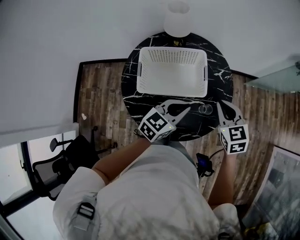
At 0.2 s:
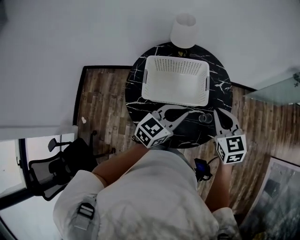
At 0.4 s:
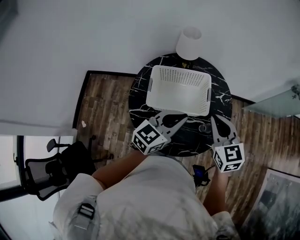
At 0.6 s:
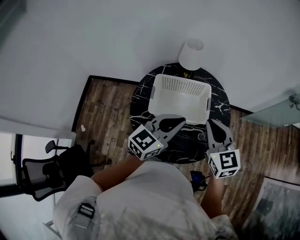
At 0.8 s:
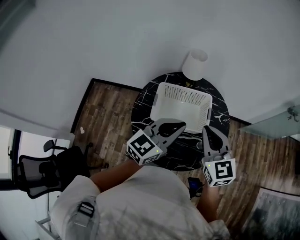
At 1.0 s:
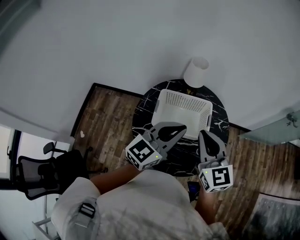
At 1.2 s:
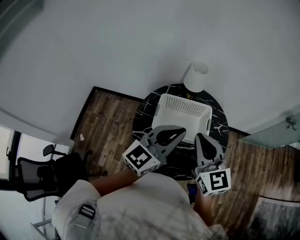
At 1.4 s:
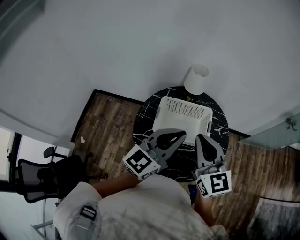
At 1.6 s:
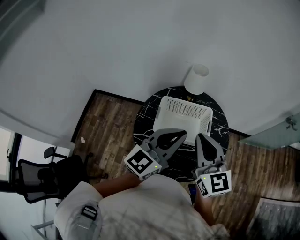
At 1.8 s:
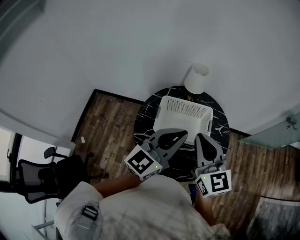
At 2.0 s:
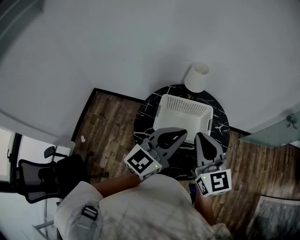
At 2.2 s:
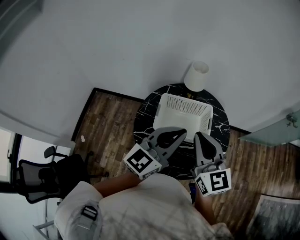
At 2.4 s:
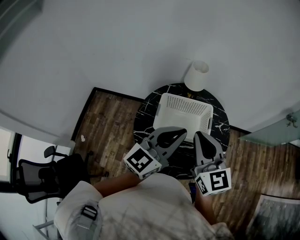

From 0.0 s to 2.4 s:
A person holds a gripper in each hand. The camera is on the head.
From 0.0 s to 1.2 s: The grippers both shift upward and to the left by approximately 25 cm. The right gripper changes its angle by about 30 degrees. Meanwhile the left gripper turns by some 30 degrees.
From 1.2 s to 2.4 s: The grippers make only small movements.

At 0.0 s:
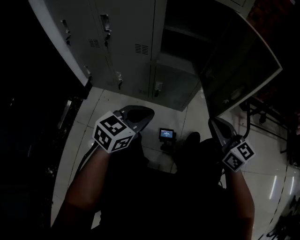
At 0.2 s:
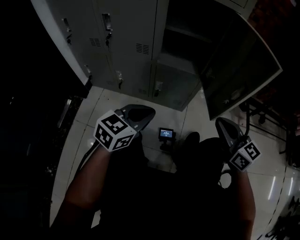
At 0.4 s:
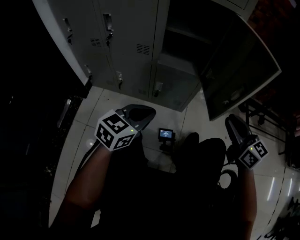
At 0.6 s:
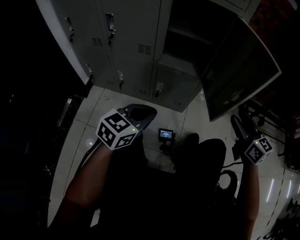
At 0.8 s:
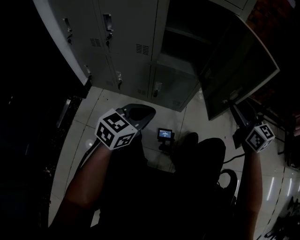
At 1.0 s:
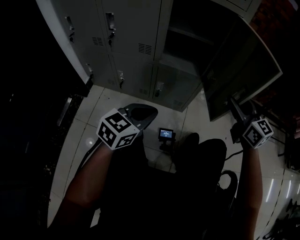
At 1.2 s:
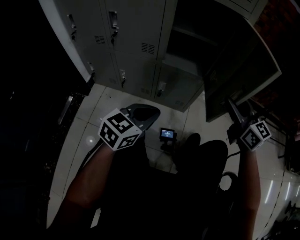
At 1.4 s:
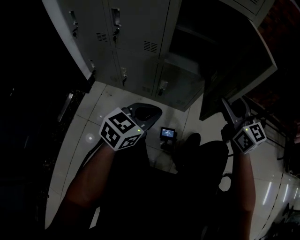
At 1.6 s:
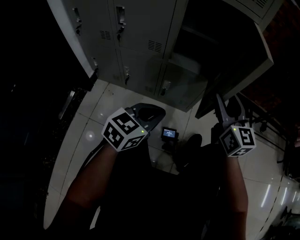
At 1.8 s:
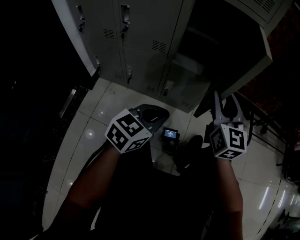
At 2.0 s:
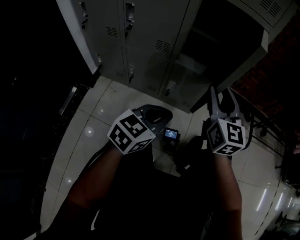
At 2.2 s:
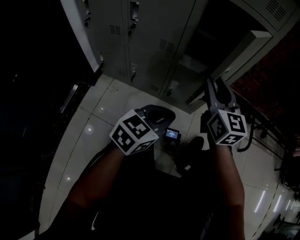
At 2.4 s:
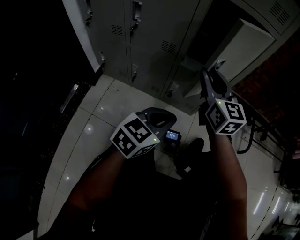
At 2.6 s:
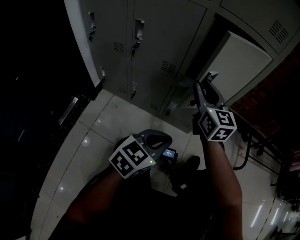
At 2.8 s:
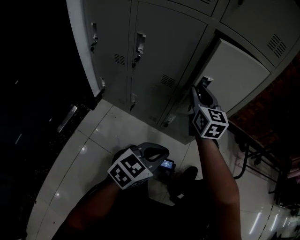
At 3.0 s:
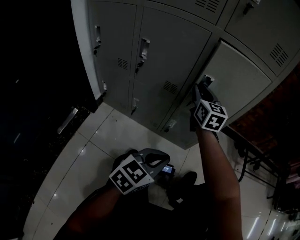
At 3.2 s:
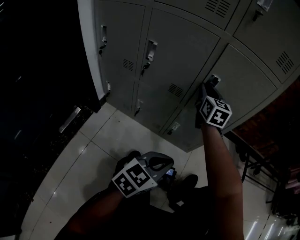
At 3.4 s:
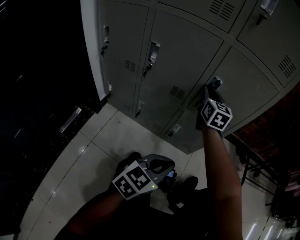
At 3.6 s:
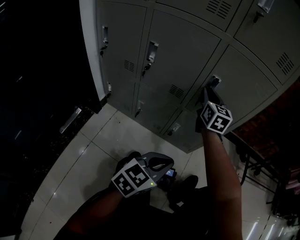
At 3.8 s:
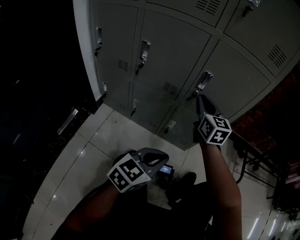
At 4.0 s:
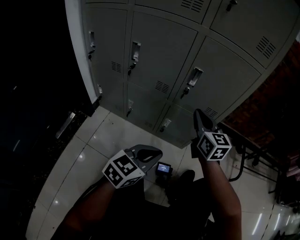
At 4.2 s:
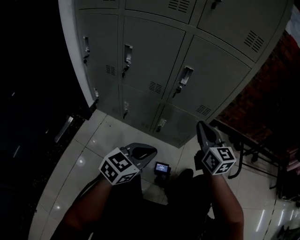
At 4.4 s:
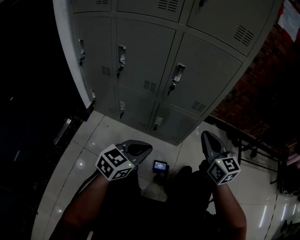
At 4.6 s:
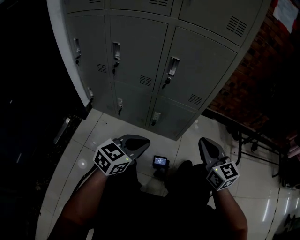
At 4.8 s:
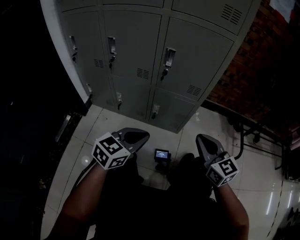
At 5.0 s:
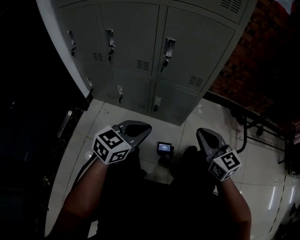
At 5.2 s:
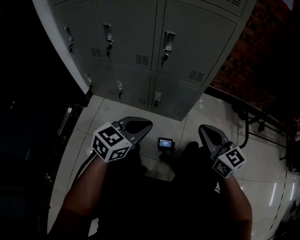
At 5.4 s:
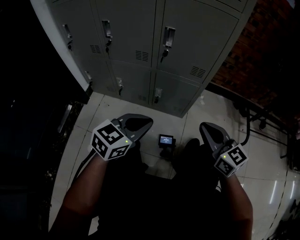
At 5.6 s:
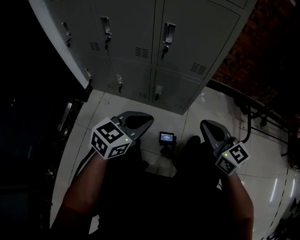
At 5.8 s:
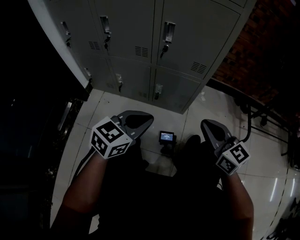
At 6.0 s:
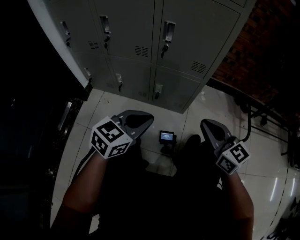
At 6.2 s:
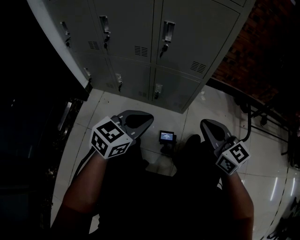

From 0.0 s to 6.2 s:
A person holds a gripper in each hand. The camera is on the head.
From 0.0 s to 1.6 s: The right gripper goes roughly 10 cm forward and upward, moves approximately 10 cm to the right and comes back, swivels some 20 degrees, and opens.
From 1.6 s to 3.2 s: The right gripper shifts roughly 30 cm to the left and forward, and closes.
From 3.2 s to 4.6 s: The right gripper goes some 35 cm backward and to the right.
From 4.6 s to 6.2 s: The grippers move only a little.

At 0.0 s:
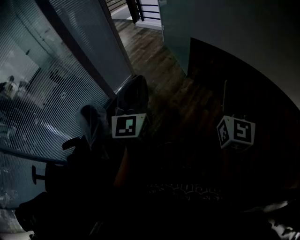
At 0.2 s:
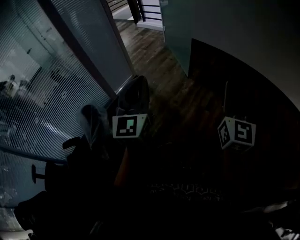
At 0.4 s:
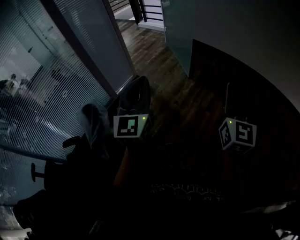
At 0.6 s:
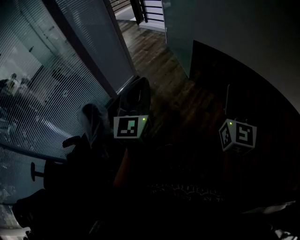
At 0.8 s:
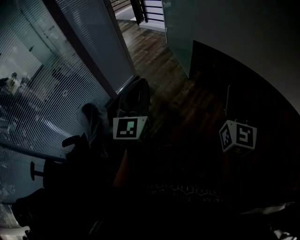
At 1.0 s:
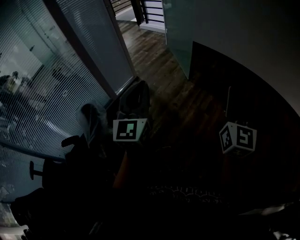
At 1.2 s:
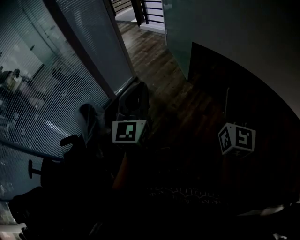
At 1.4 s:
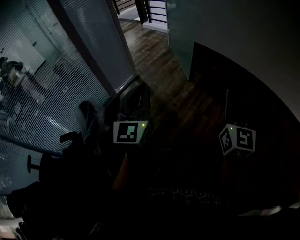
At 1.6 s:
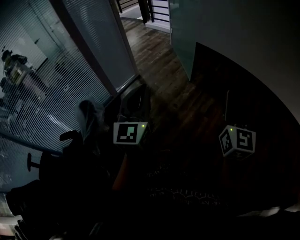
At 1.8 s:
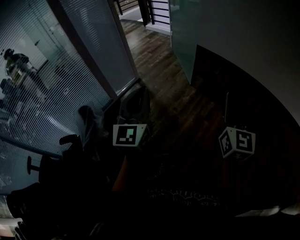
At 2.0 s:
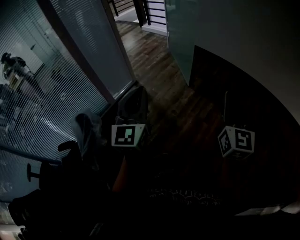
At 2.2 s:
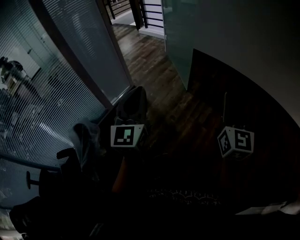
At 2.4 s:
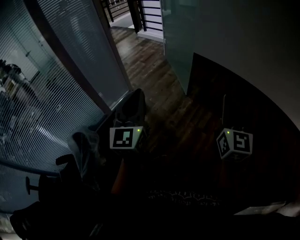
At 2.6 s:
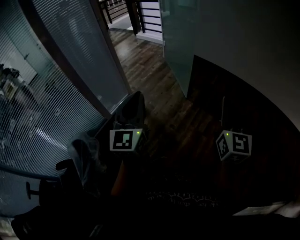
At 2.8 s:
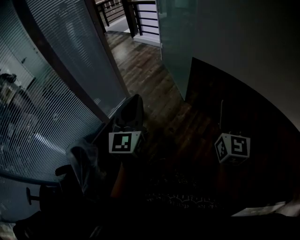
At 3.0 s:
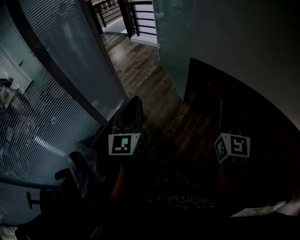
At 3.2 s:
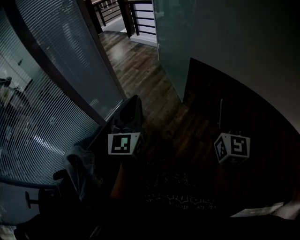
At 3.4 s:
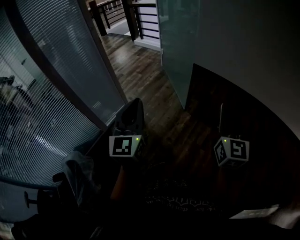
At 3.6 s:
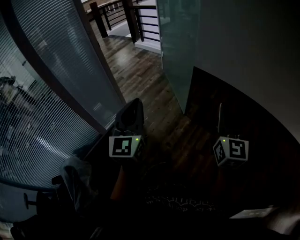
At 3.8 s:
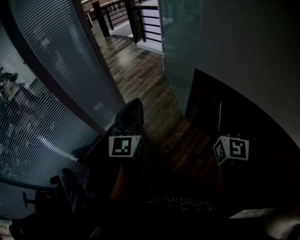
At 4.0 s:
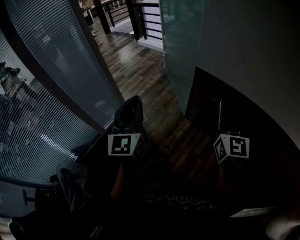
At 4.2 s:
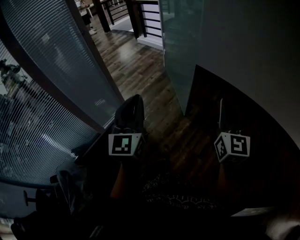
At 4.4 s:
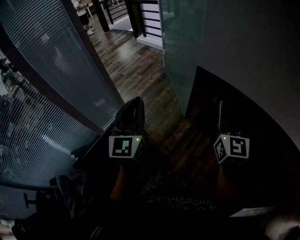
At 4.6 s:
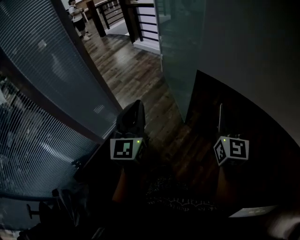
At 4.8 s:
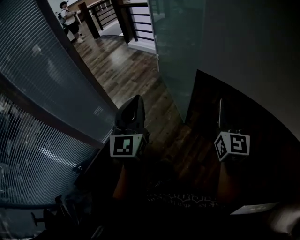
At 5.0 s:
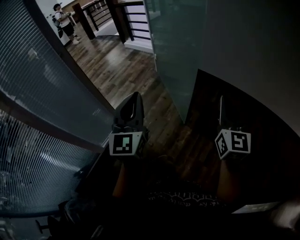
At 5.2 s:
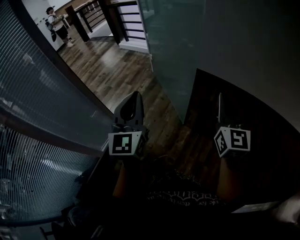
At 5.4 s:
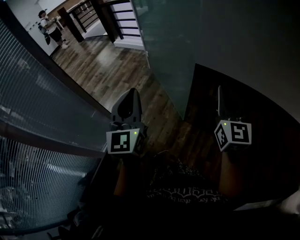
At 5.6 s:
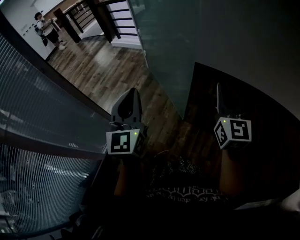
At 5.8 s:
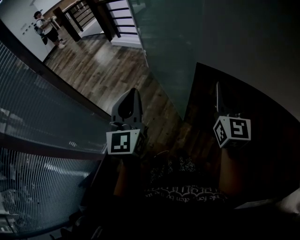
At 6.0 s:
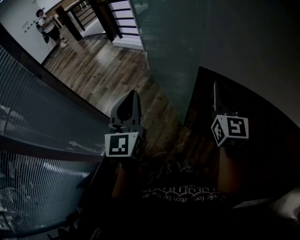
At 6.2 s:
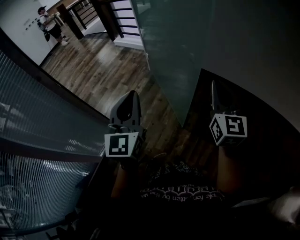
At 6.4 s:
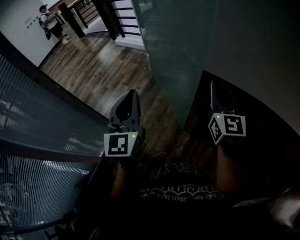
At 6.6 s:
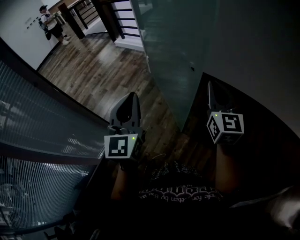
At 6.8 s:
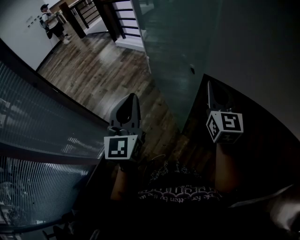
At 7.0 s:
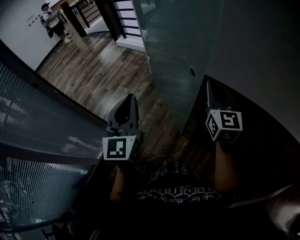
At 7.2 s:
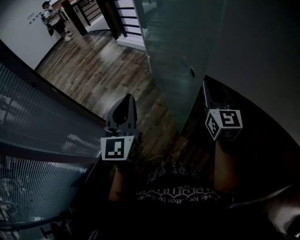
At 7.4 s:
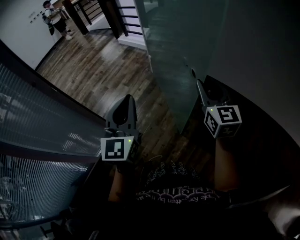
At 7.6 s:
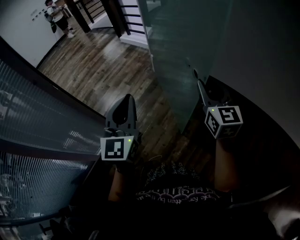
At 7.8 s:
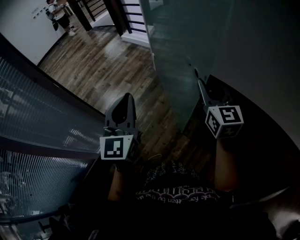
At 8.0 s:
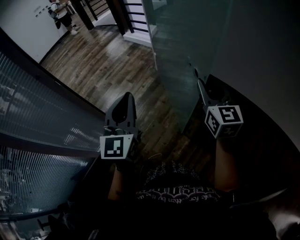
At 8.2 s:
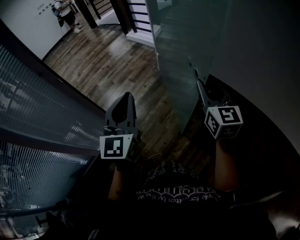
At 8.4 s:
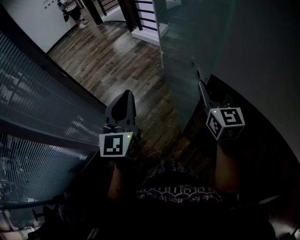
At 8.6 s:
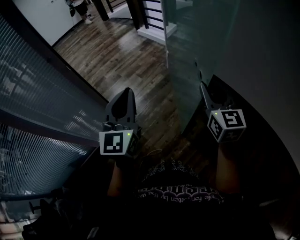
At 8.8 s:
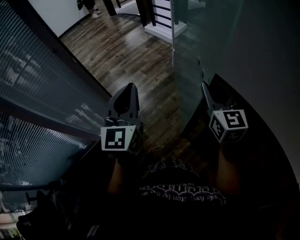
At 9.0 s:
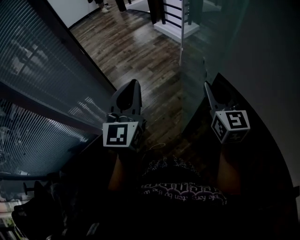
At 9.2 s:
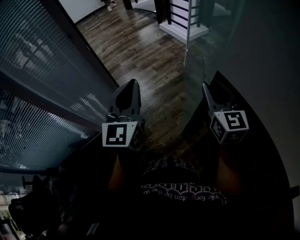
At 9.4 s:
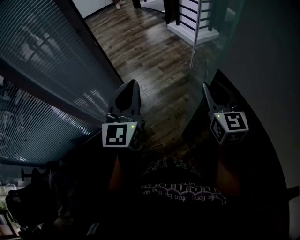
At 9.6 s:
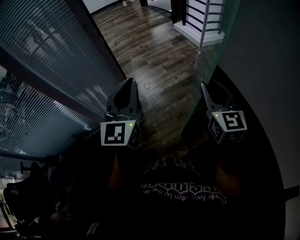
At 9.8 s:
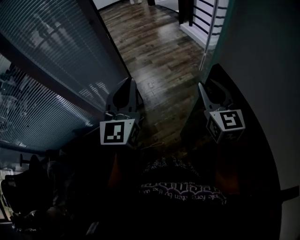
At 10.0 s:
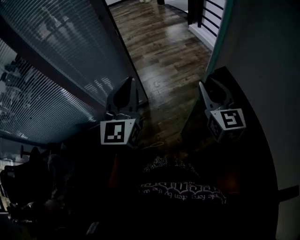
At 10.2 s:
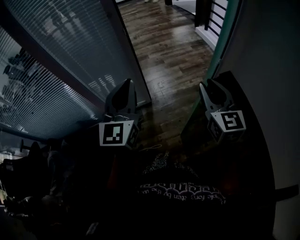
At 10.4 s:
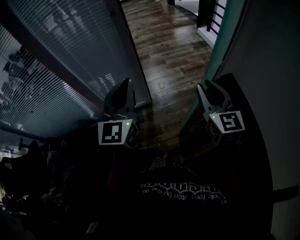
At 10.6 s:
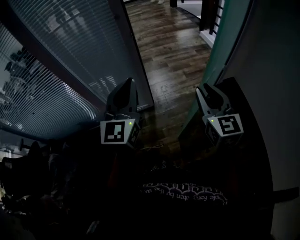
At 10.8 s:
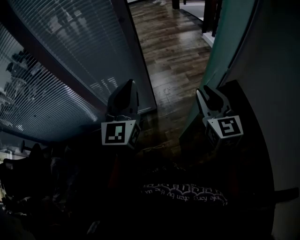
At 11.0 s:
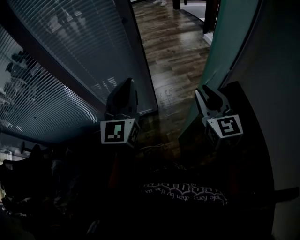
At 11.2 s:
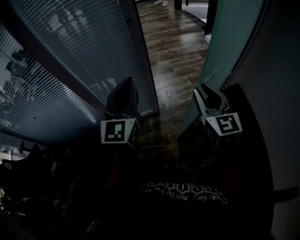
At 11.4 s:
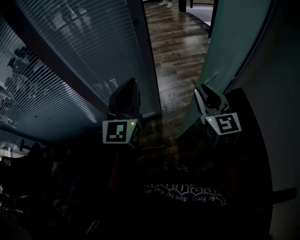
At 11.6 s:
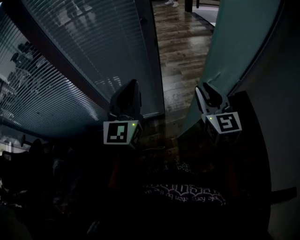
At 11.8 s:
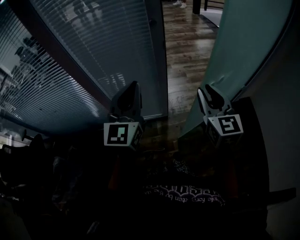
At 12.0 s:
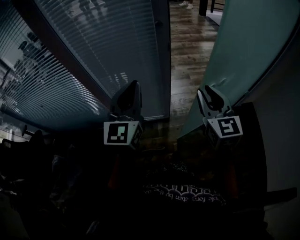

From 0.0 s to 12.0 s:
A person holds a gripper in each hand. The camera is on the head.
From 0.0 s to 1.6 s: The grippers make only small movements.
From 1.6 s to 3.0 s: Both grippers move forward, about 25 cm.
From 3.0 s to 4.4 s: Both grippers move forward, roughly 25 cm.
From 4.4 s to 6.0 s: Both grippers travel together forward, approximately 30 cm.
From 6.0 s to 7.6 s: The right gripper is displaced forward by about 15 cm, and opens up, while the left gripper goes roughly 10 cm forward.
From 7.6 s to 9.0 s: The two grippers go approximately 5 cm to the left.
From 9.0 s to 10.4 s: The right gripper goes about 20 cm to the left and forward, and turns by some 20 degrees; the left gripper travels to the left by some 15 cm, and changes its angle by some 20 degrees.
From 10.4 s to 12.0 s: The grippers both shift forward and to the left by roughly 20 cm.

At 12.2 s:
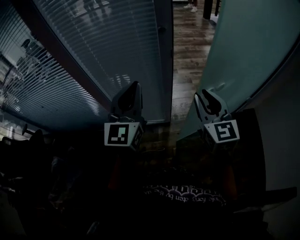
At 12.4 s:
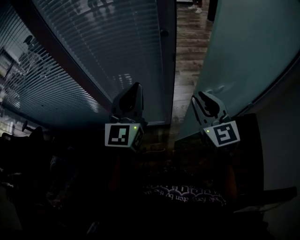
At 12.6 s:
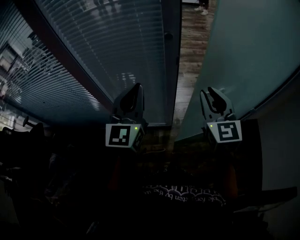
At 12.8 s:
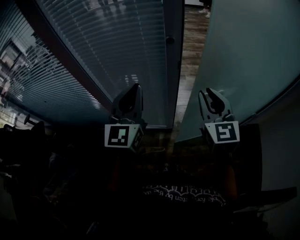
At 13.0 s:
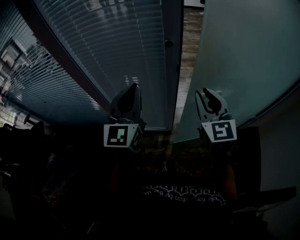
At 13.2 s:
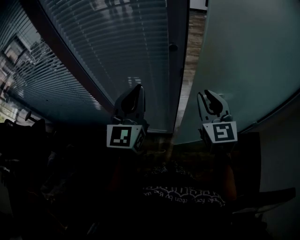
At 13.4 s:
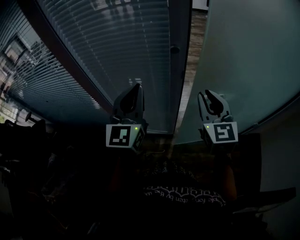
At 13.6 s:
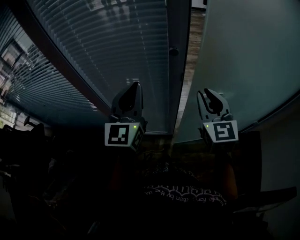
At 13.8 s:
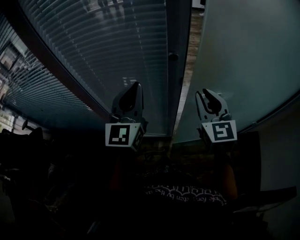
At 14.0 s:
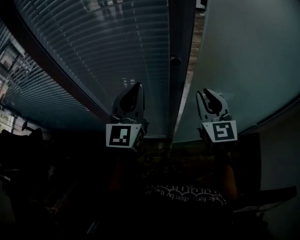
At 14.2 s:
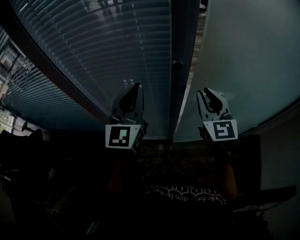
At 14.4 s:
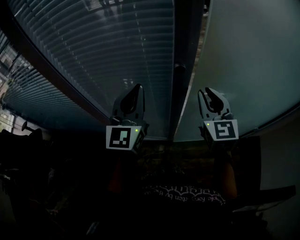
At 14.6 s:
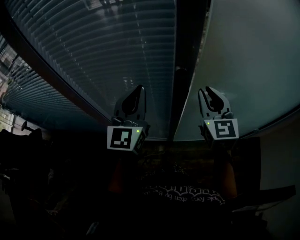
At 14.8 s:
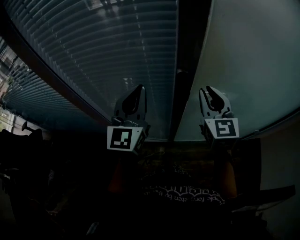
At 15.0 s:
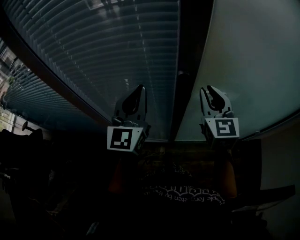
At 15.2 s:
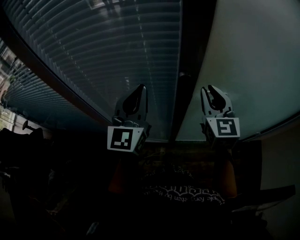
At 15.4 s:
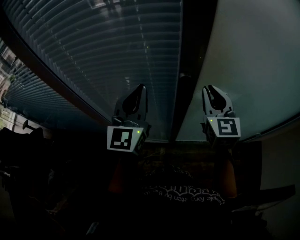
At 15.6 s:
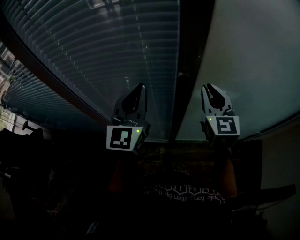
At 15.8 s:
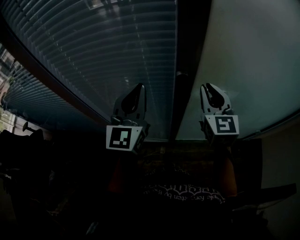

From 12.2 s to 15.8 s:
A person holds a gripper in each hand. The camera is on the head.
From 12.2 s to 14.0 s: Both grippers travel together forward, roughly 20 cm.
From 14.0 s to 15.8 s: The right gripper goes about 10 cm forward; the left gripper is displaced forward by approximately 5 cm.
